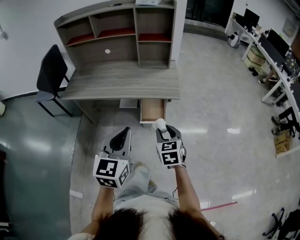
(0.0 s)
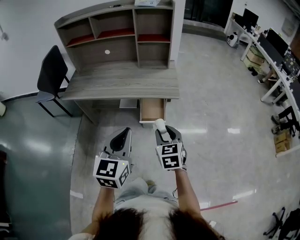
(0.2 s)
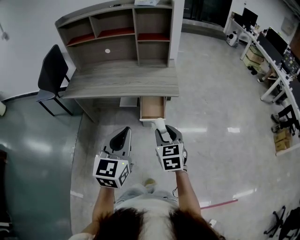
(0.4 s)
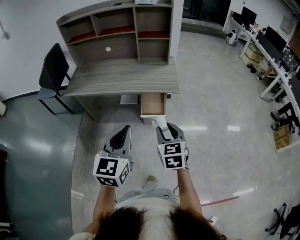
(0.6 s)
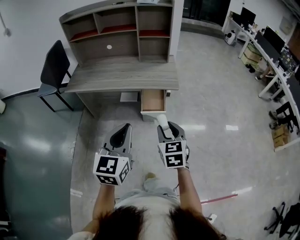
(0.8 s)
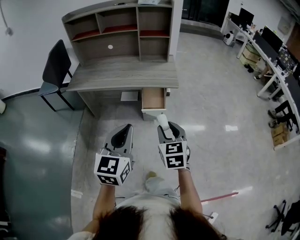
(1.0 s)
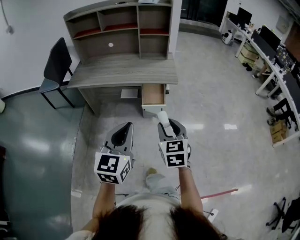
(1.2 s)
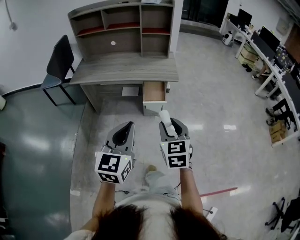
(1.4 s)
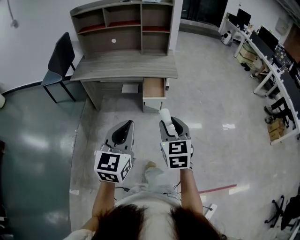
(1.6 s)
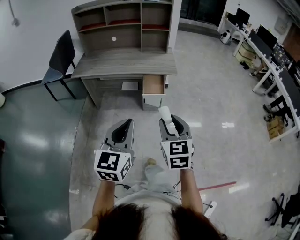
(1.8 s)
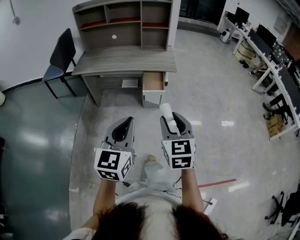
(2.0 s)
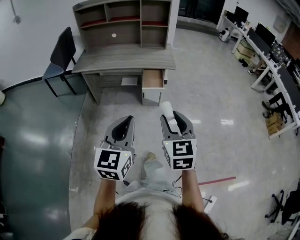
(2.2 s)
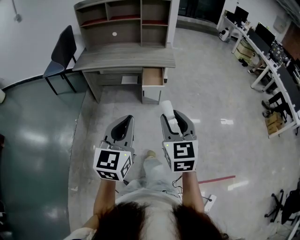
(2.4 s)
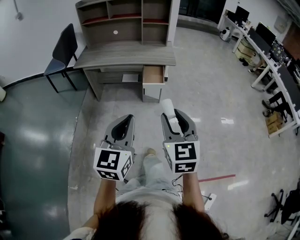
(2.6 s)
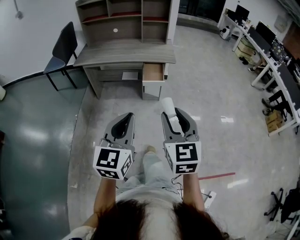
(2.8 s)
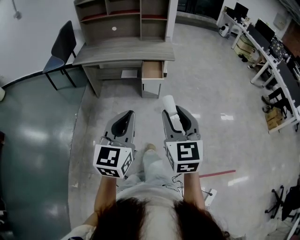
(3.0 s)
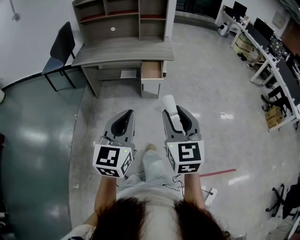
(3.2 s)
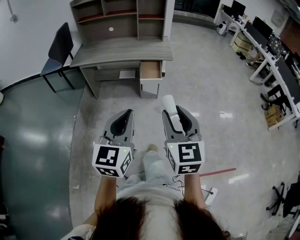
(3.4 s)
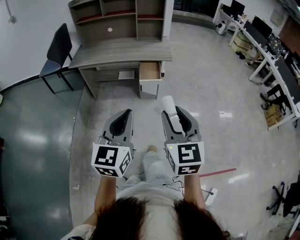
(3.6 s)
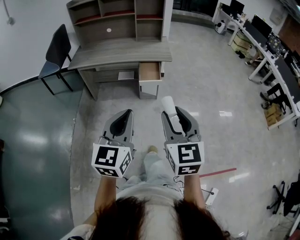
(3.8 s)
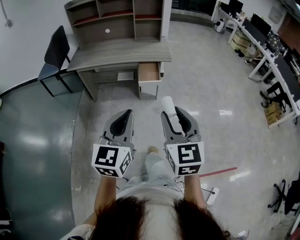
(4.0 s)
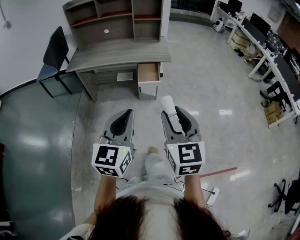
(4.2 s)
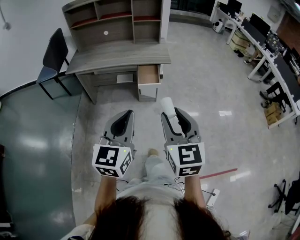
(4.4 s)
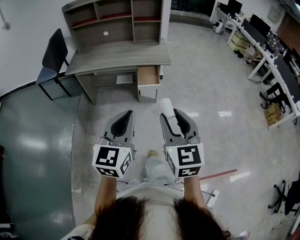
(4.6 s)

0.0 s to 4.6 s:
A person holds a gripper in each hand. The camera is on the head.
0.0 to 1.6 s: The right gripper moves backward and upward, about 25 cm; the left gripper moves backward, about 20 cm.
1.6 to 3.0 s: The left gripper heads backward, covering roughly 15 cm, while the right gripper goes some 15 cm backward and upward.
3.0 to 4.6 s: Both grippers move forward, some 5 cm.

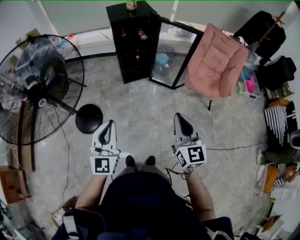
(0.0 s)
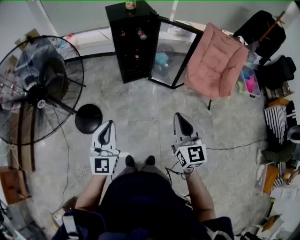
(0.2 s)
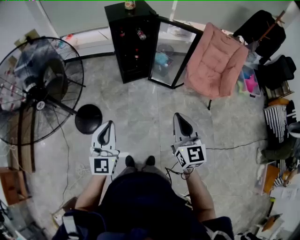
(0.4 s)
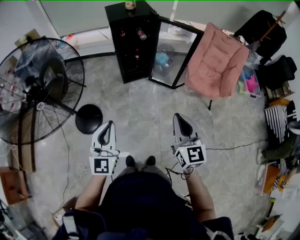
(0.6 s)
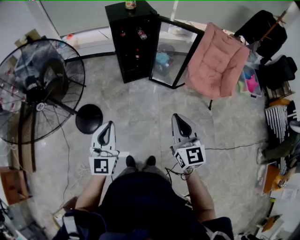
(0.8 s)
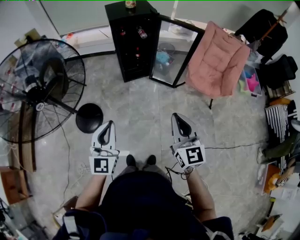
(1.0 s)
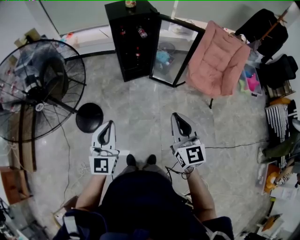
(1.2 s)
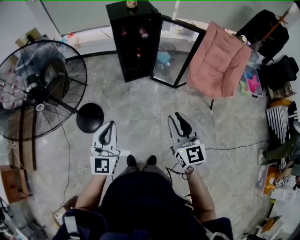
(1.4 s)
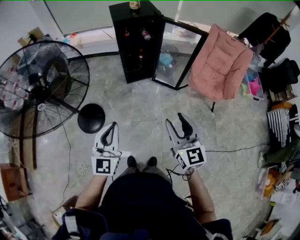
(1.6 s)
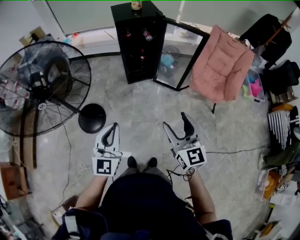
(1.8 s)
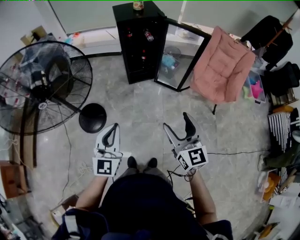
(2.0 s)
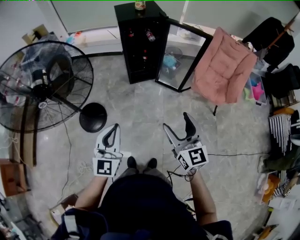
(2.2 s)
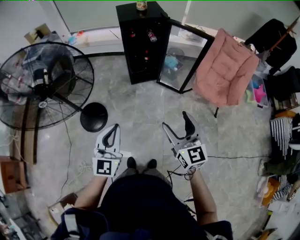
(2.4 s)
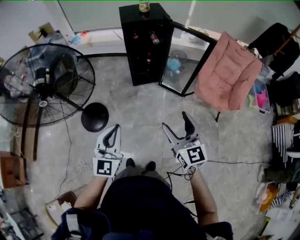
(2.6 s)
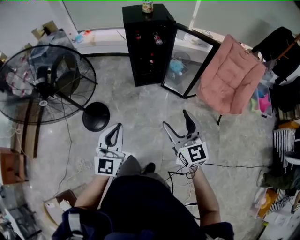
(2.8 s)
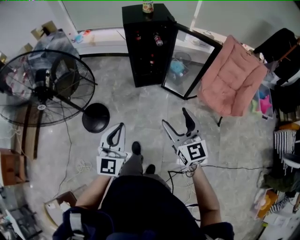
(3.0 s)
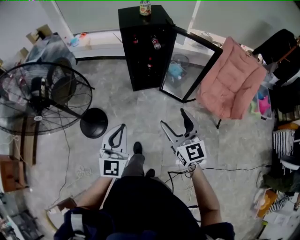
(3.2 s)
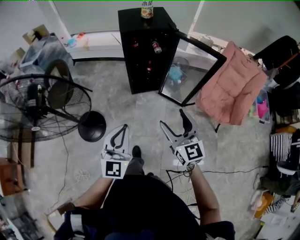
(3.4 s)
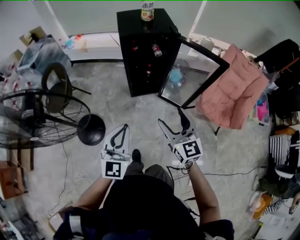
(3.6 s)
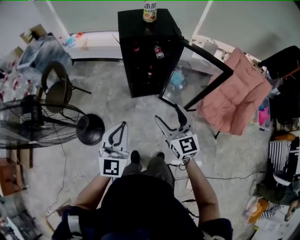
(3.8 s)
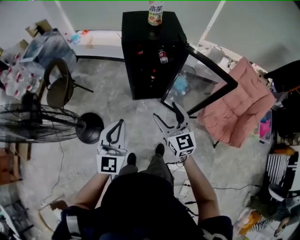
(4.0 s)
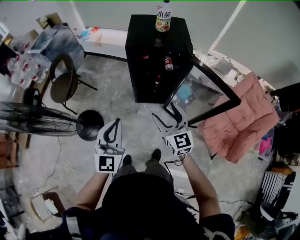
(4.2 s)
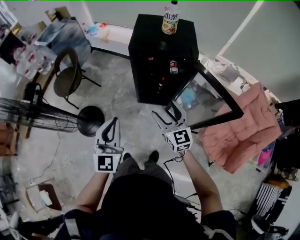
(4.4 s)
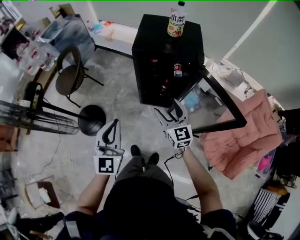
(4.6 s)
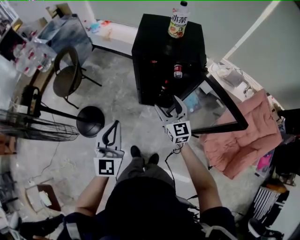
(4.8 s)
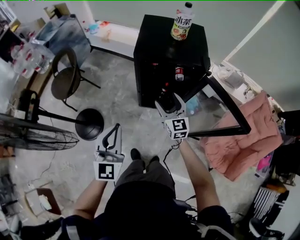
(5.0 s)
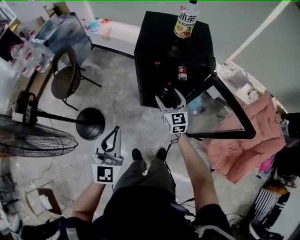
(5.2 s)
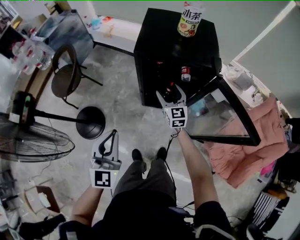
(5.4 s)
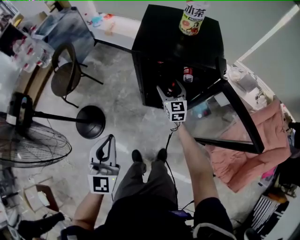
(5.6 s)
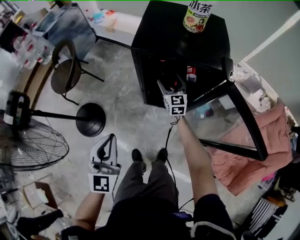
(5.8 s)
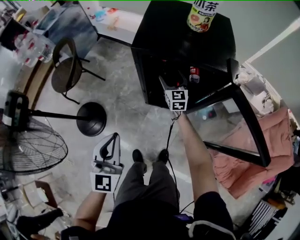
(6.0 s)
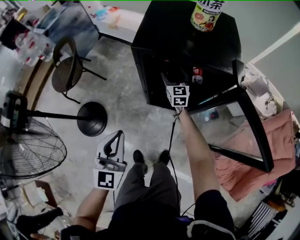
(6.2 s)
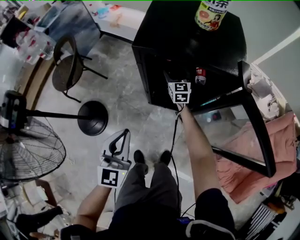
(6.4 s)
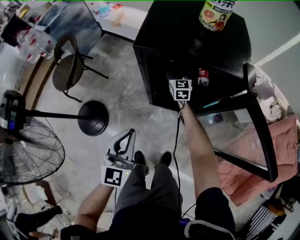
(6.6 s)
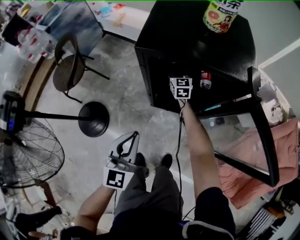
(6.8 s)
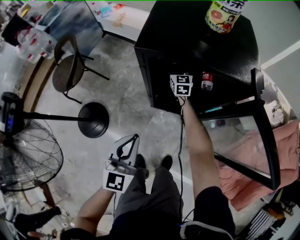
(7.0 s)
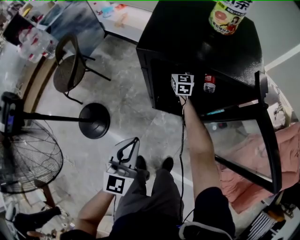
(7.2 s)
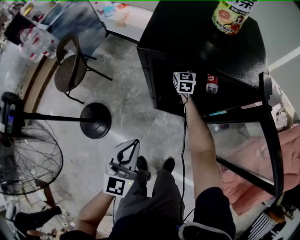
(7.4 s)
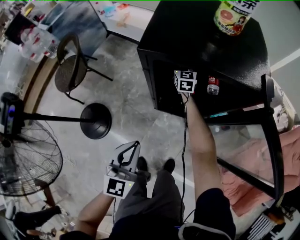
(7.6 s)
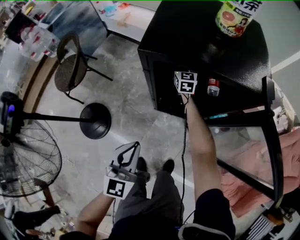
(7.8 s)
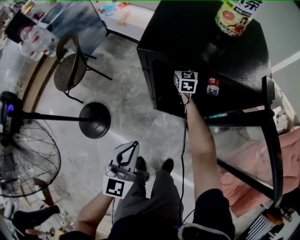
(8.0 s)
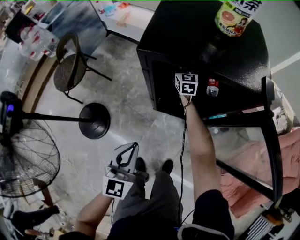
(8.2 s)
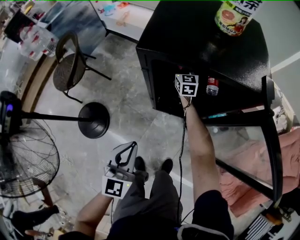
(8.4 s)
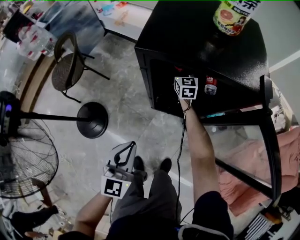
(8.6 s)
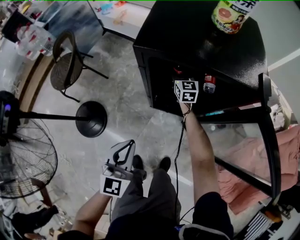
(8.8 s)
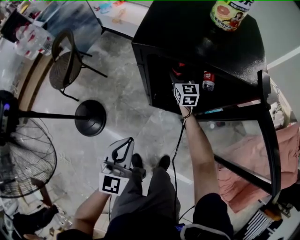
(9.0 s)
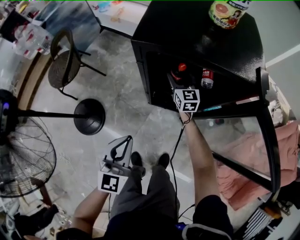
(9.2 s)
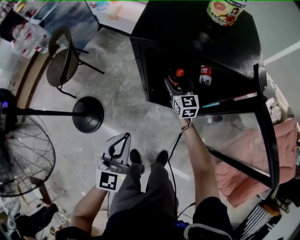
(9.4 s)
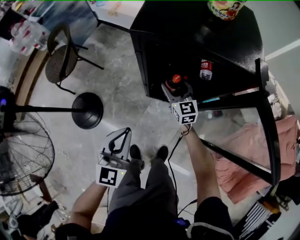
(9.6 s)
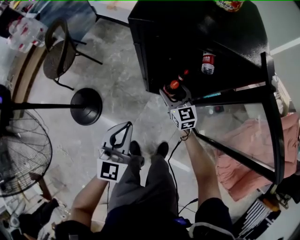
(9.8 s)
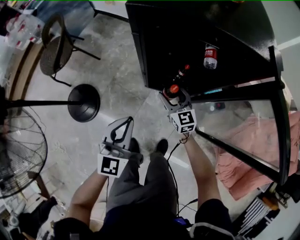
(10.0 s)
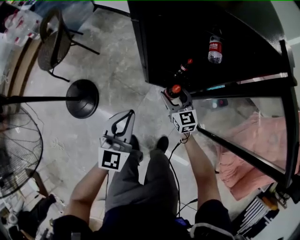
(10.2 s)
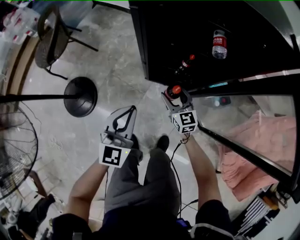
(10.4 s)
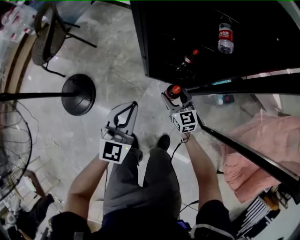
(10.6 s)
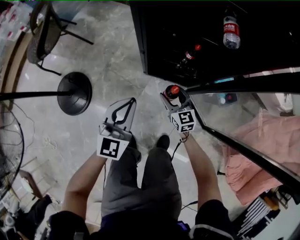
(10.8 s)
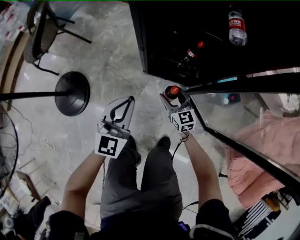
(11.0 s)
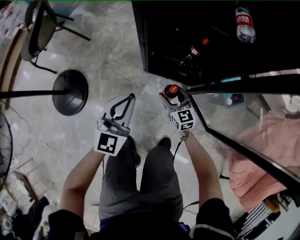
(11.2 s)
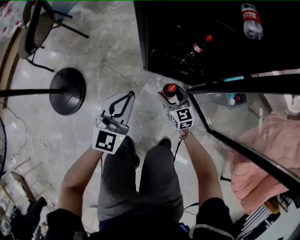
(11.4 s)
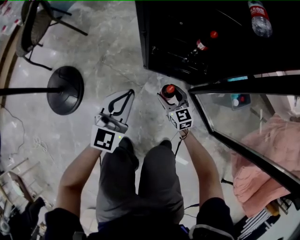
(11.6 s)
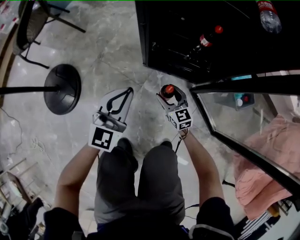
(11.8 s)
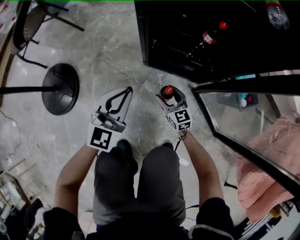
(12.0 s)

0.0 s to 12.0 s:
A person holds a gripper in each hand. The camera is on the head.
0.0 to 1.6 s: The right gripper opens up.
1.6 to 3.0 s: The right gripper travels forward by some 10 cm, and opens up. The left gripper travels to the right by roughly 5 cm.
3.0 to 4.4 s: The grippers both shift forward by approximately 40 cm. The left gripper rotates about 20 degrees.
4.4 to 6.0 s: The right gripper heads forward and downward, covering approximately 40 cm, while the left gripper is displaced downward and forward by roughly 20 cm.
6.0 to 7.6 s: The right gripper goes approximately 20 cm forward and downward. The left gripper shifts roughly 15 cm downward and forward.
7.6 to 9.0 s: The right gripper shifts about 10 cm backward.
9.0 to 10.4 s: The right gripper goes approximately 30 cm backward and downward. The left gripper heads downward, covering approximately 15 cm.
10.4 to 12.0 s: Both grippers move downward, roughly 35 cm.

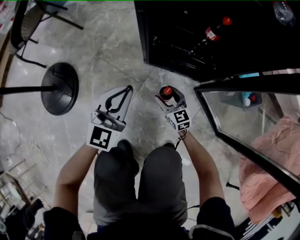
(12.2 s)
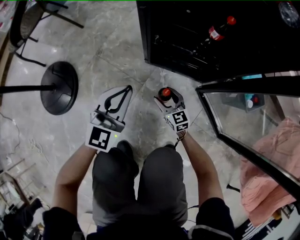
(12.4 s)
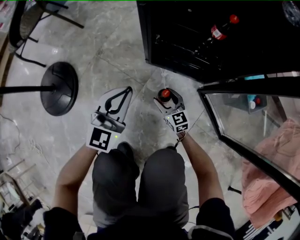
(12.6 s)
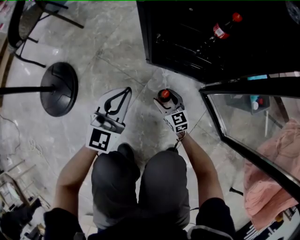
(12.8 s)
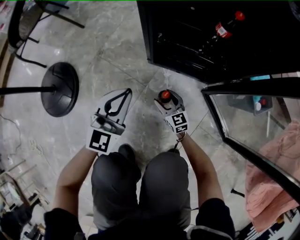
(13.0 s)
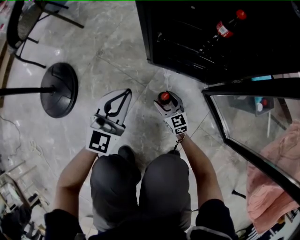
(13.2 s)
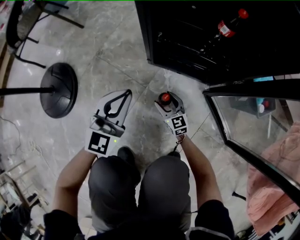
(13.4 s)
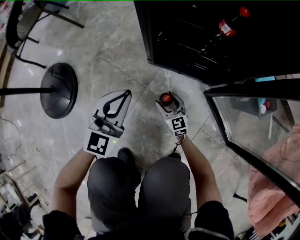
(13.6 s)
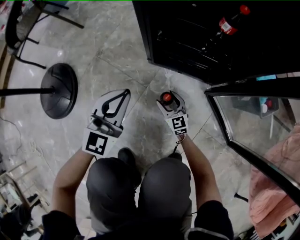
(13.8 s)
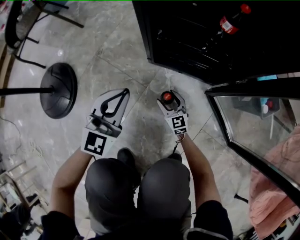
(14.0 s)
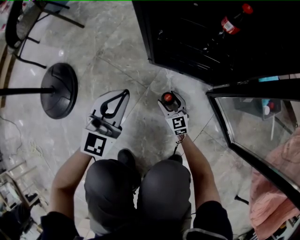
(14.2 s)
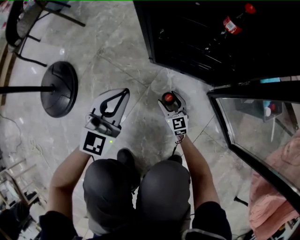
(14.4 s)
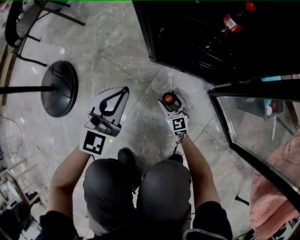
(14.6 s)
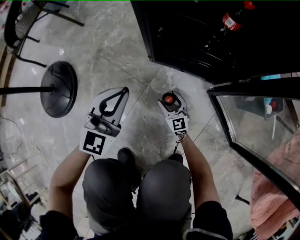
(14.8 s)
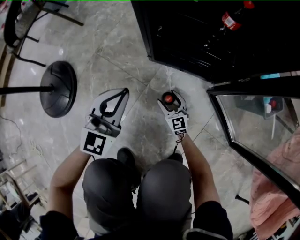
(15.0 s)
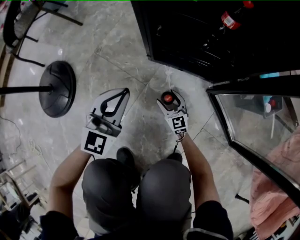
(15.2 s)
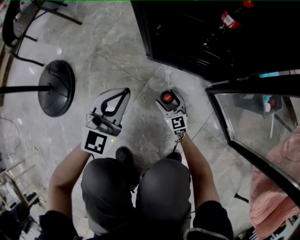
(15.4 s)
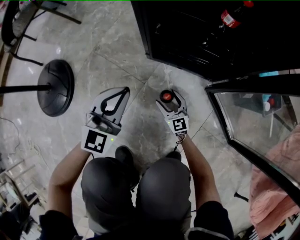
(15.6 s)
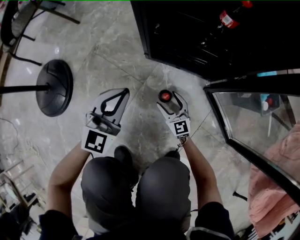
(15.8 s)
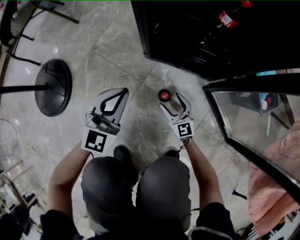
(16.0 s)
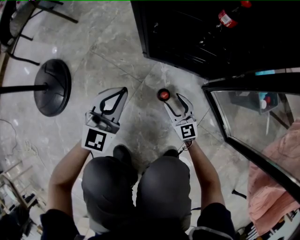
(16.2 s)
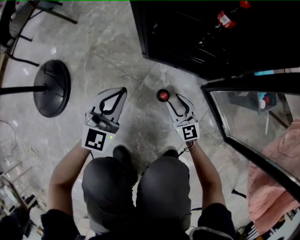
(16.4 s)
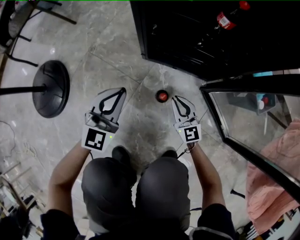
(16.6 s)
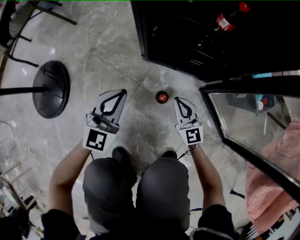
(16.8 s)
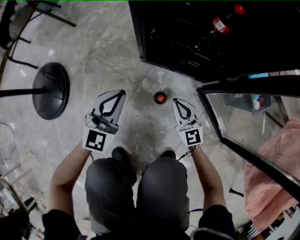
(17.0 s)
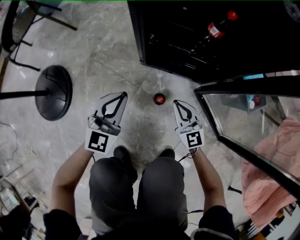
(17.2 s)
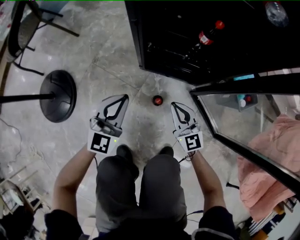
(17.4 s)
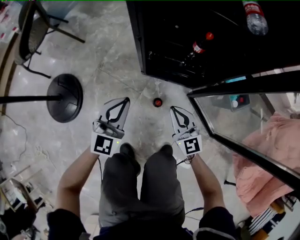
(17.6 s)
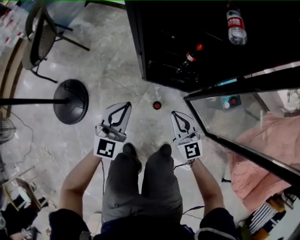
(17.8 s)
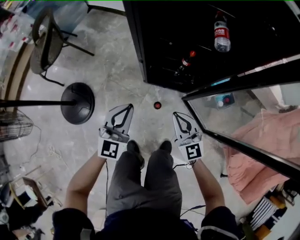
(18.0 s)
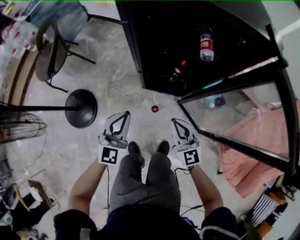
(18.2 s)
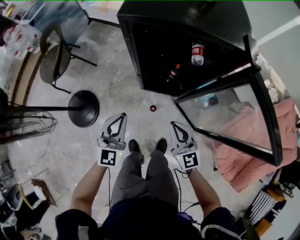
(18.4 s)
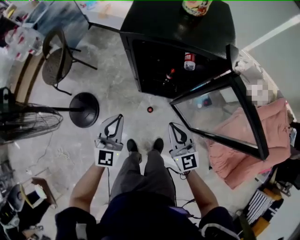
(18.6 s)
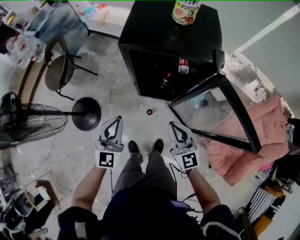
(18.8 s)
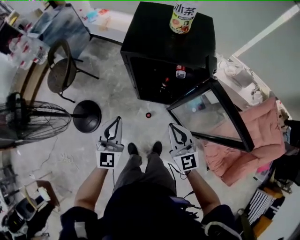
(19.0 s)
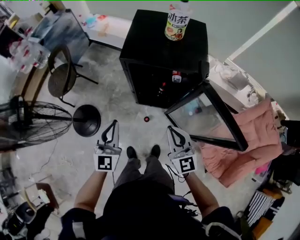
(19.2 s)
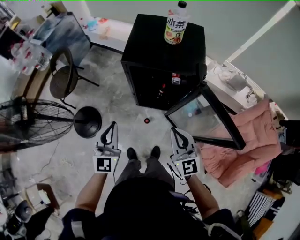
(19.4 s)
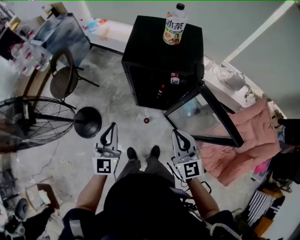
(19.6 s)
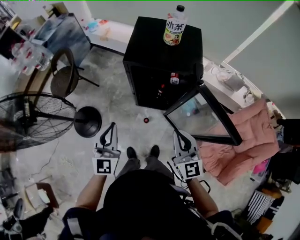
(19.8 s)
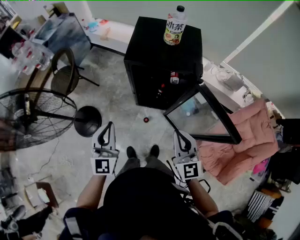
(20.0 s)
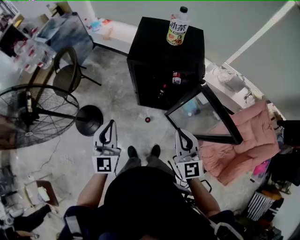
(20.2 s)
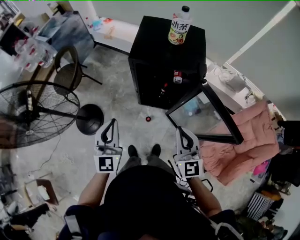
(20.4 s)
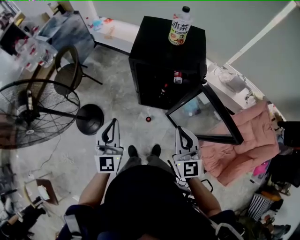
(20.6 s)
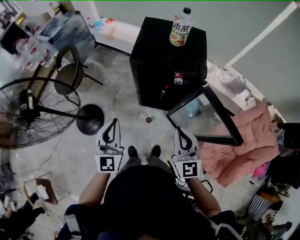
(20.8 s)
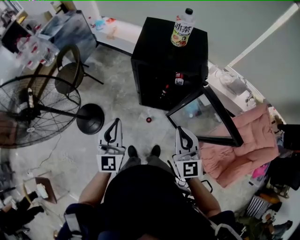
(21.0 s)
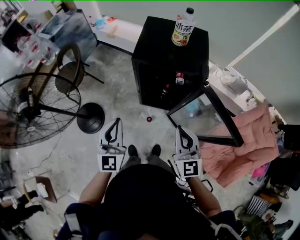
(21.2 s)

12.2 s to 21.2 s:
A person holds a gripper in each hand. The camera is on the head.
12.2 to 13.8 s: The left gripper travels downward by some 10 cm. Meanwhile the right gripper heads downward, covering about 10 cm.
13.8 to 15.2 s: There are only small adjustments of the grippers.
15.2 to 16.6 s: The right gripper heads upward and to the right, covering about 10 cm, and closes.
16.6 to 18.2 s: The two grippers go approximately 50 cm upward.
18.2 to 19.8 s: The grippers both shift upward by about 40 cm.
19.8 to 21.2 s: The grippers move only a little.
